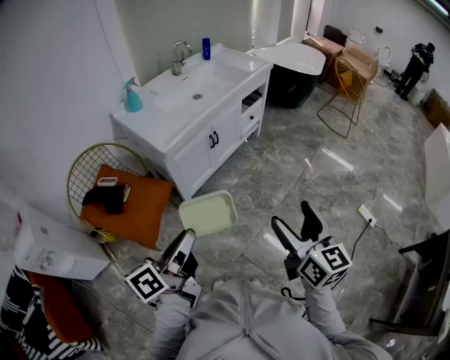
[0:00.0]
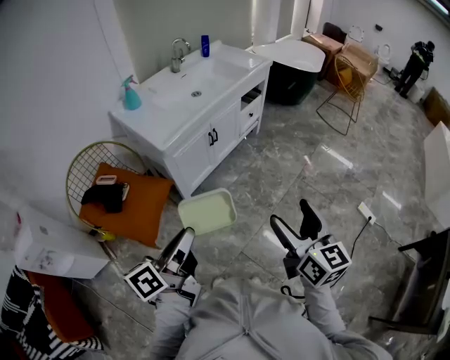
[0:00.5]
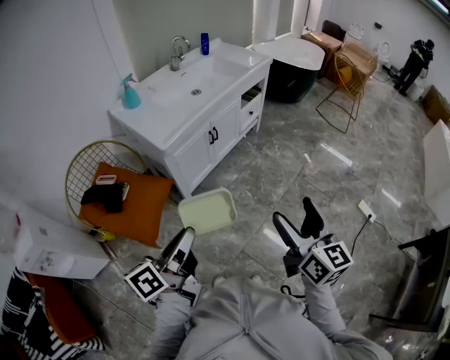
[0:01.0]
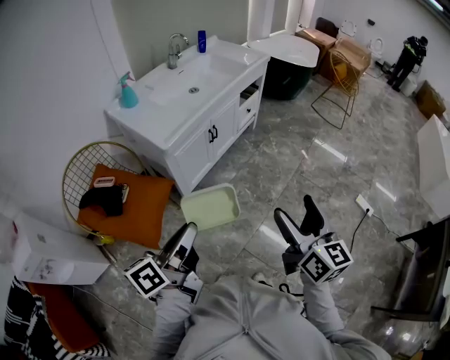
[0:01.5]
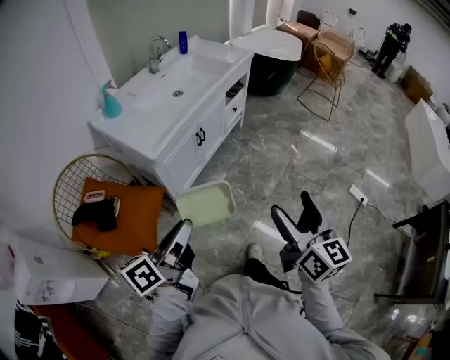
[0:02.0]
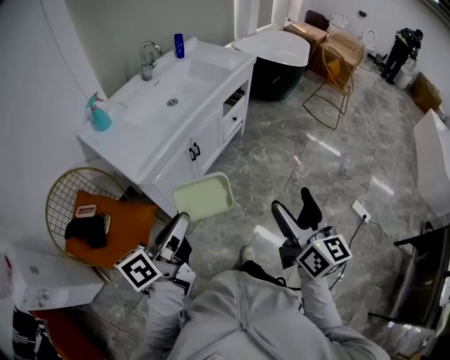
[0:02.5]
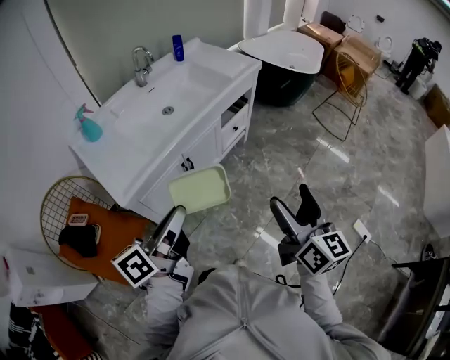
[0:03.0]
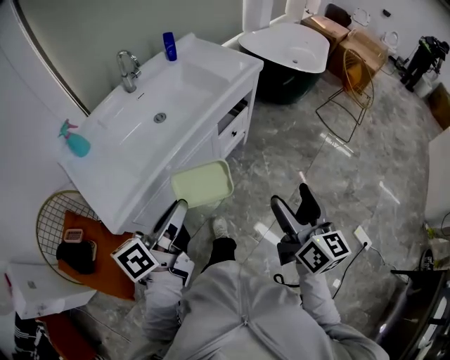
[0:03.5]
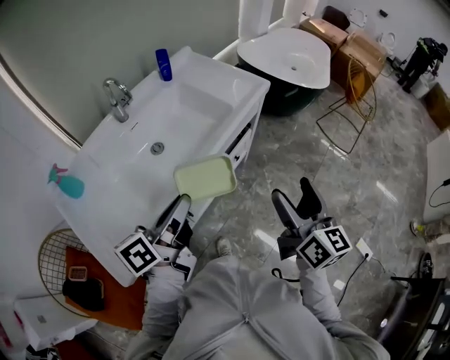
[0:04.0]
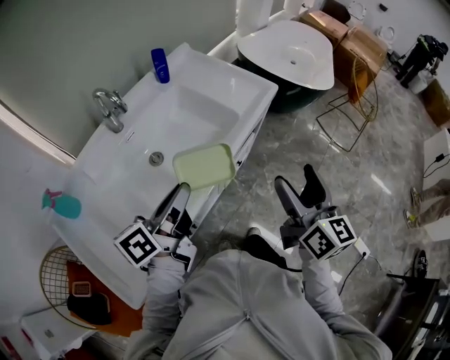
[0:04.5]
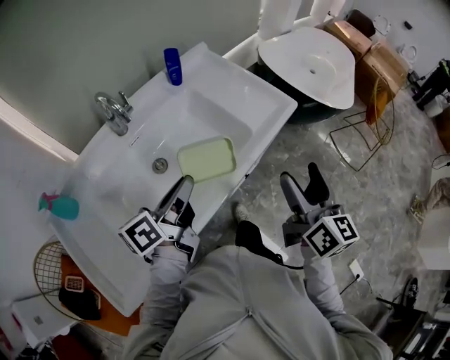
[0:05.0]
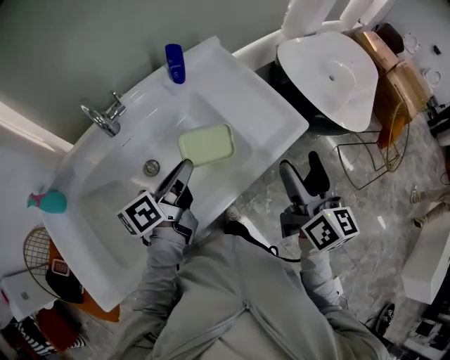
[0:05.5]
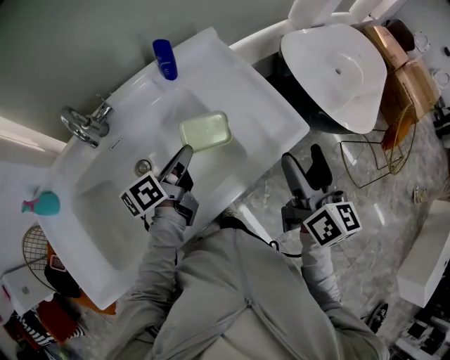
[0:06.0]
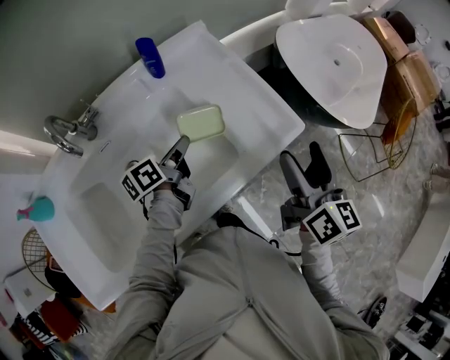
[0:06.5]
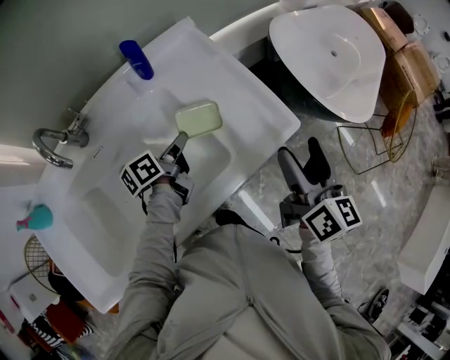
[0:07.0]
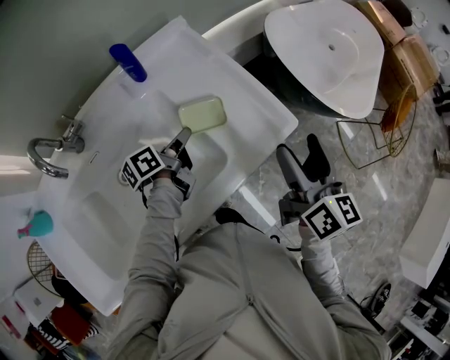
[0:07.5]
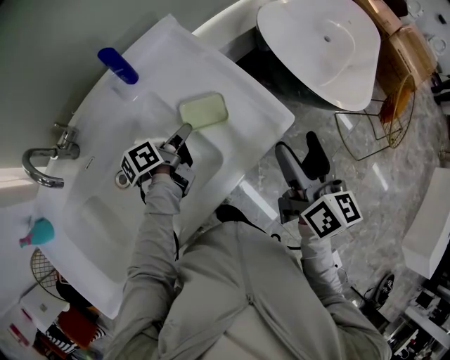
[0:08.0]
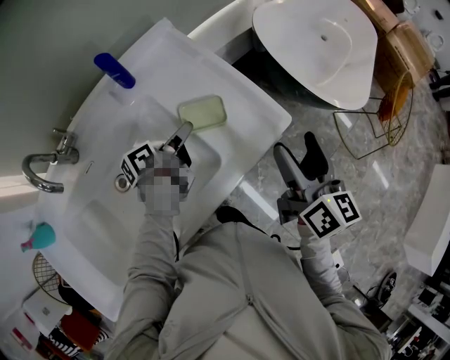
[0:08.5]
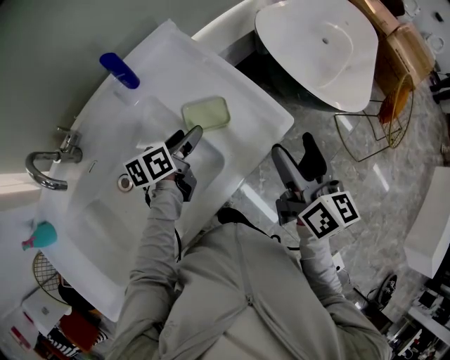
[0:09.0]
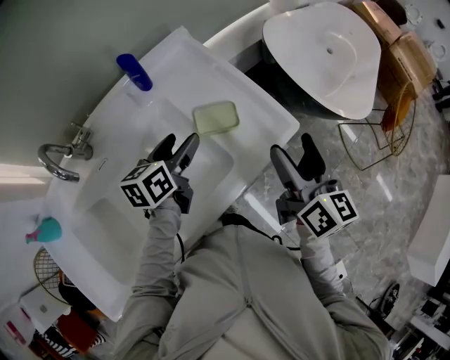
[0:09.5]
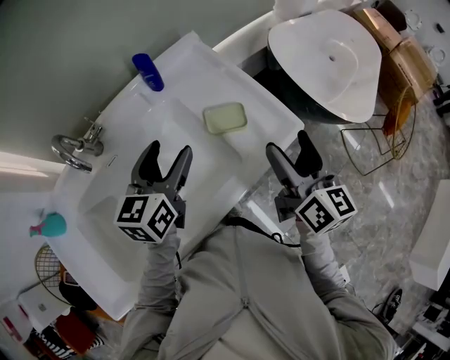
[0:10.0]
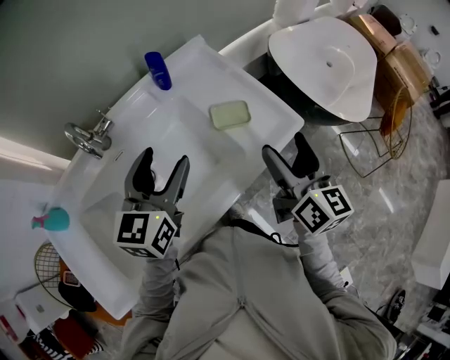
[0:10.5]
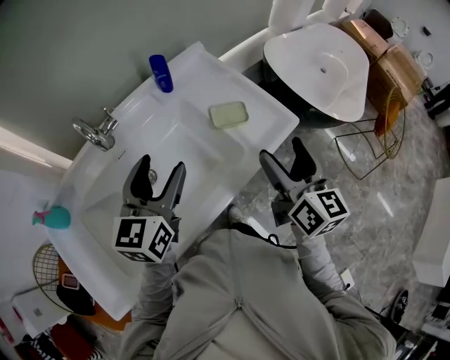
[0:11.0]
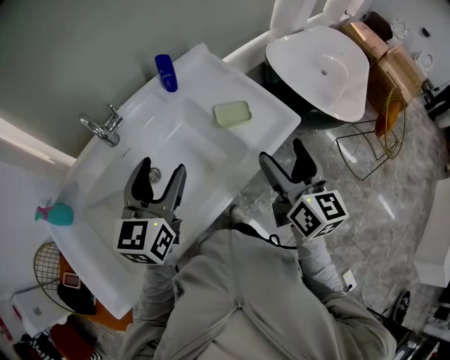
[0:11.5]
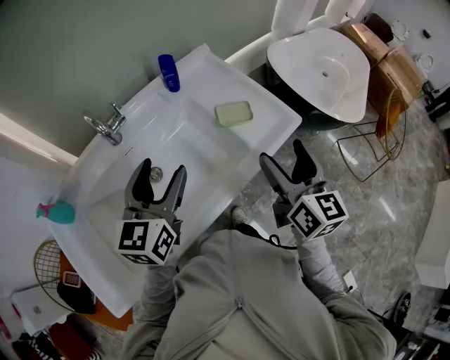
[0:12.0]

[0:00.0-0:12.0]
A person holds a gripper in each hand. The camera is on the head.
0:00.0 to 0:02.0: The left gripper heads forward and to the left, covering about 10 cm.
0:02.0 to 0:04.0: Both grippers are carried forward, some 60 cm.
0:04.0 to 0:06.0: Both grippers travel together forward, roughly 40 cm. The left gripper changes its angle by about 20 degrees.
0:06.0 to 0:08.0: The right gripper is displaced forward and to the right by roughly 5 cm, while the left gripper goes some 15 cm forward, downward and to the right.
0:08.0 to 0:10.0: The left gripper moves upward and backward, some 20 cm, rolls clockwise, seen from behind, by roughly 50 degrees, and opens its fingers; the right gripper travels to the left by some 5 cm.
0:10.0 to 0:12.0: The left gripper shifts about 15 cm backward, to the left and upward; the right gripper shifts approximately 10 cm backward and to the left.

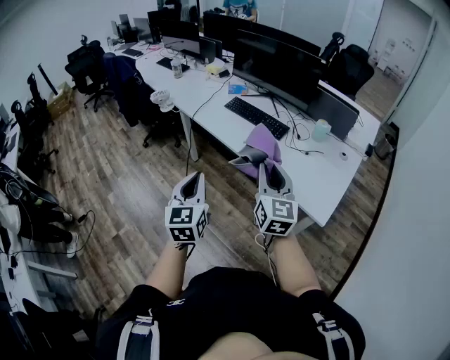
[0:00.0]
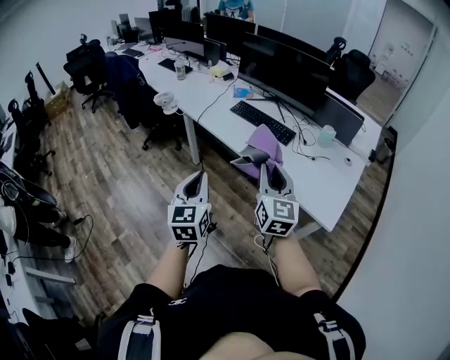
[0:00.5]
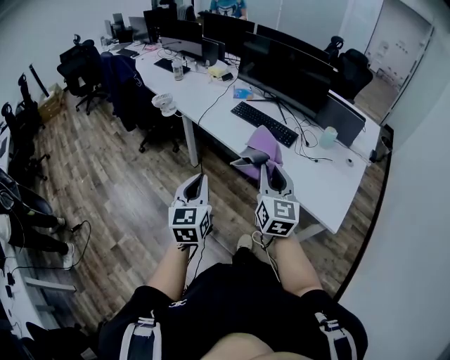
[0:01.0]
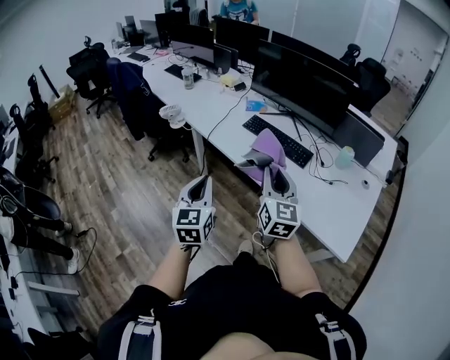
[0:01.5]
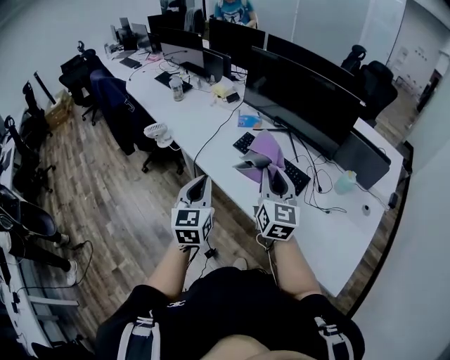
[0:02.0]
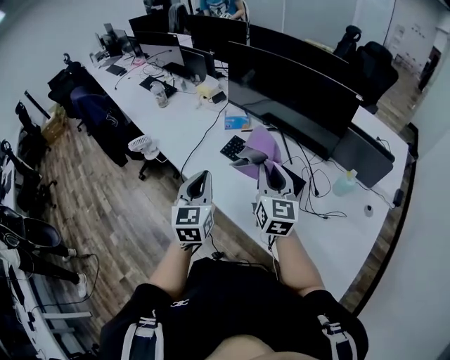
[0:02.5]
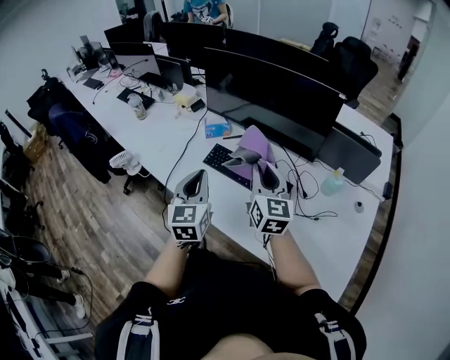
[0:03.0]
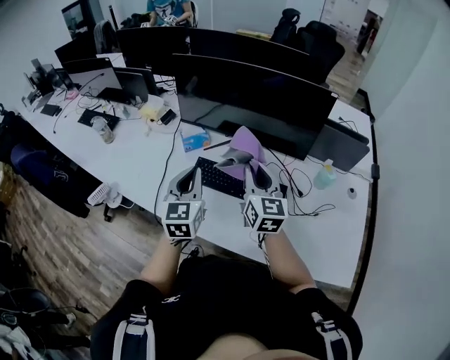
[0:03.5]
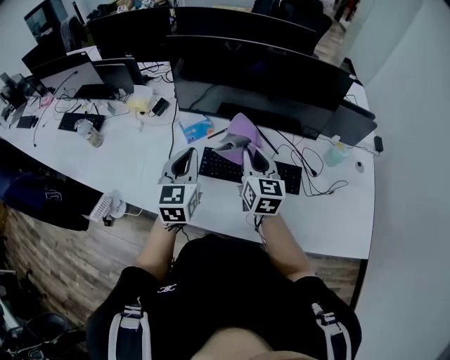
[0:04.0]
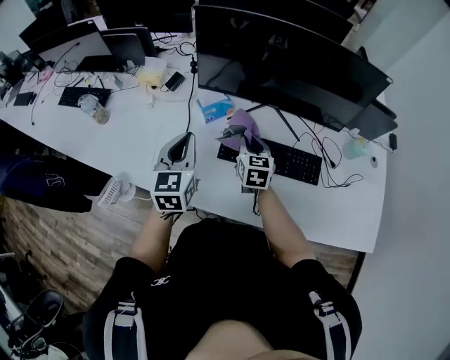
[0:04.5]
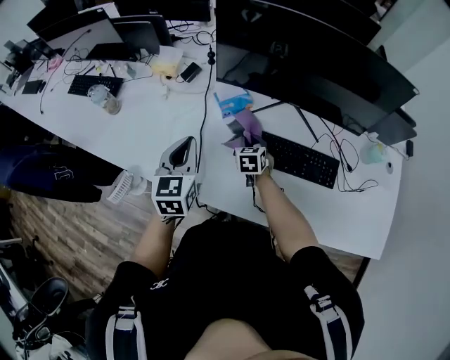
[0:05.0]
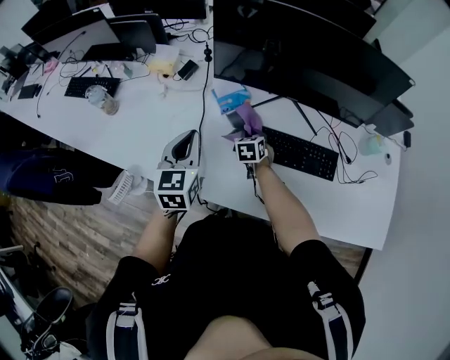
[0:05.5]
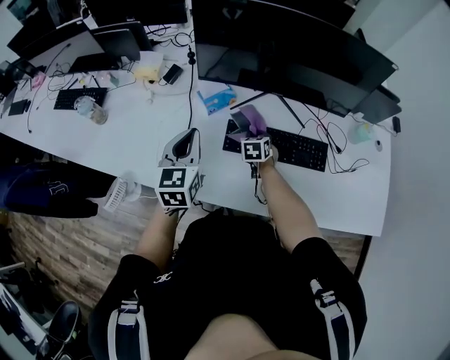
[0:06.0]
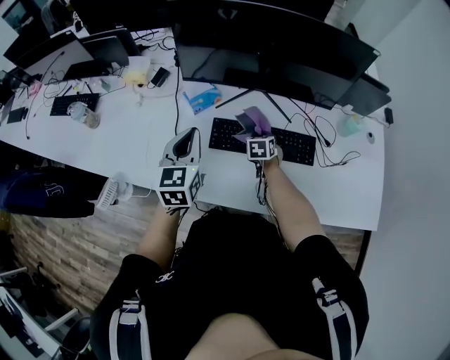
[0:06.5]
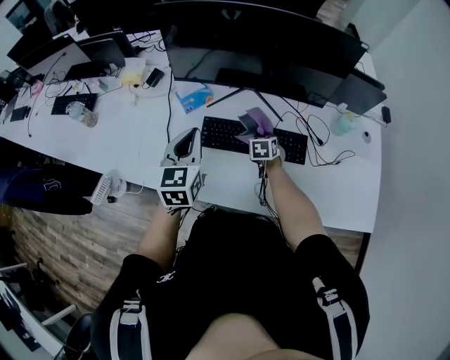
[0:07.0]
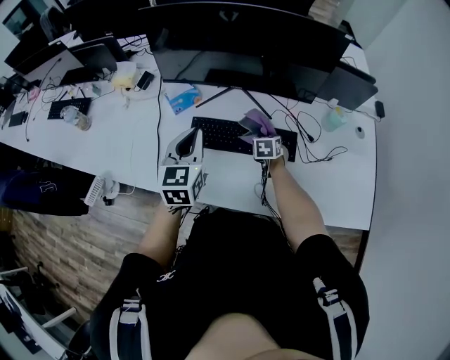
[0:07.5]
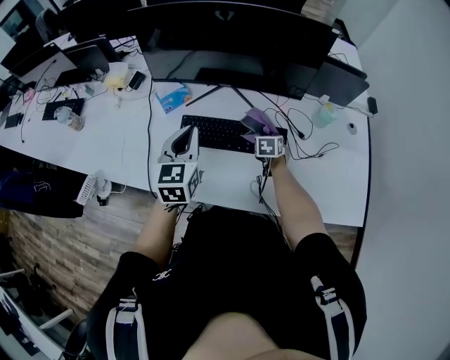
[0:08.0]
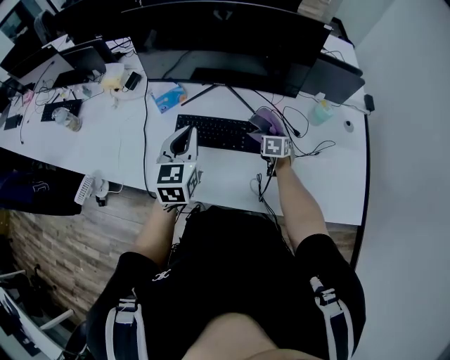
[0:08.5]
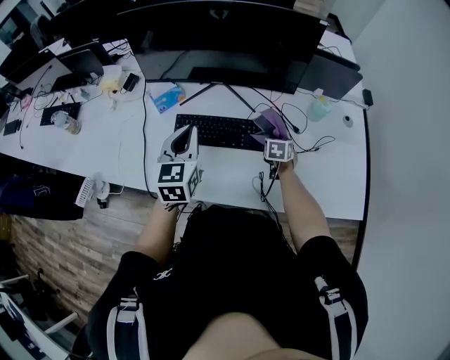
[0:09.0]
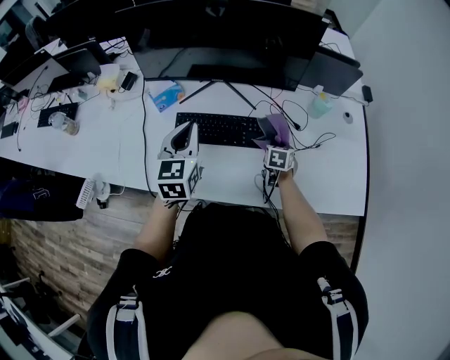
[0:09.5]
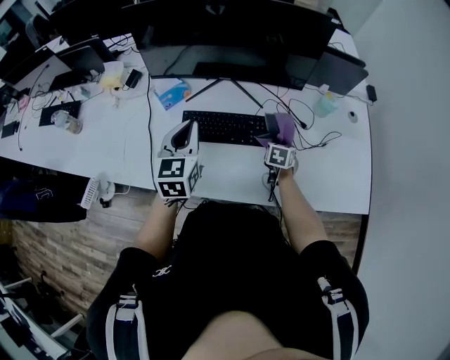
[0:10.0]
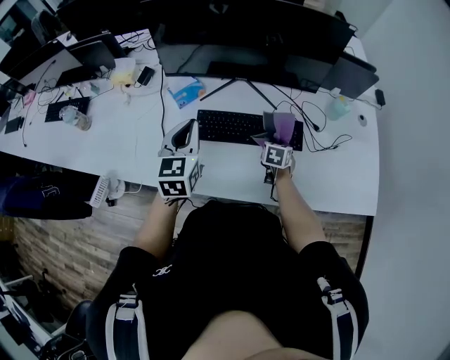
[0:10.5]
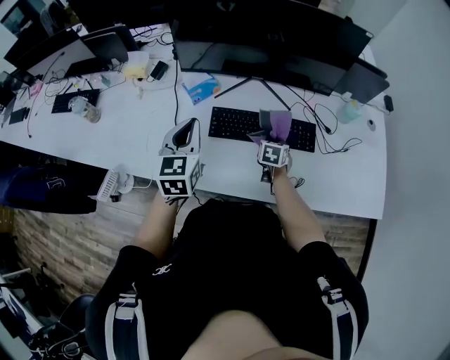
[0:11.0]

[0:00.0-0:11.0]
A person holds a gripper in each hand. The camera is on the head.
0:00.0 to 0:02.0: The grippers both shift forward by roughly 40 cm.
0:02.0 to 0:03.5: The two grippers go roughly 30 cm forward. The left gripper rotates roughly 20 degrees.
0:03.5 to 0:05.5: The right gripper moves downward, to the left and forward, roughly 40 cm, and points its fingers approximately 40 degrees further downward, while the left gripper shifts approximately 30 cm to the left and forward.
0:05.5 to 0:07.5: The grippers both shift to the right by roughly 25 cm.
0:07.5 to 0:09.0: The left gripper shifts roughly 5 cm to the right; the right gripper is displaced to the right by roughly 15 cm.
0:09.0 to 0:11.0: The two grippers go about 15 cm to the left.

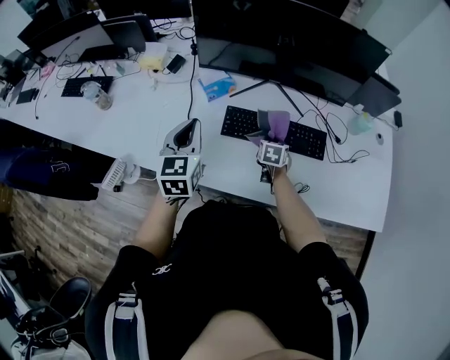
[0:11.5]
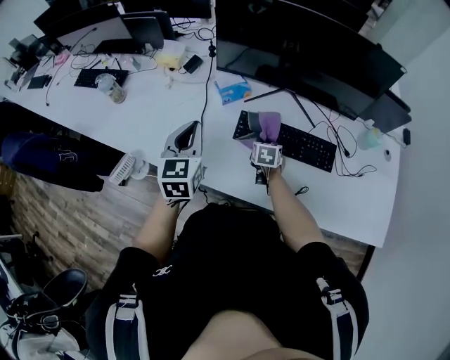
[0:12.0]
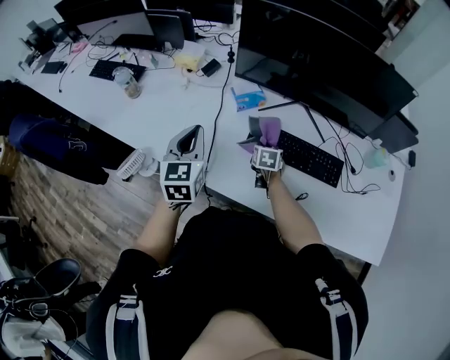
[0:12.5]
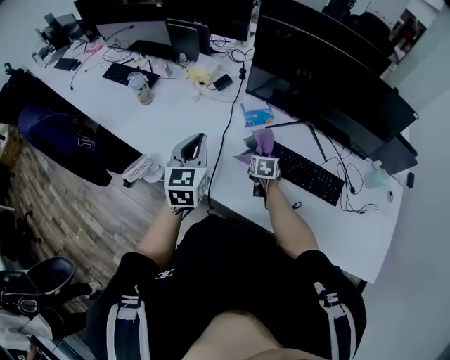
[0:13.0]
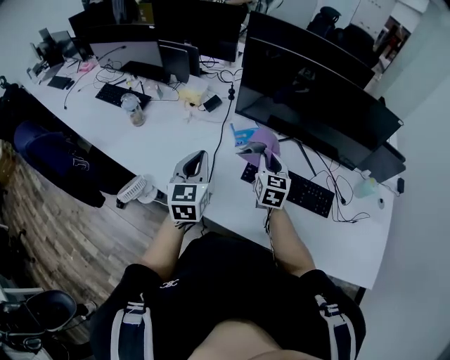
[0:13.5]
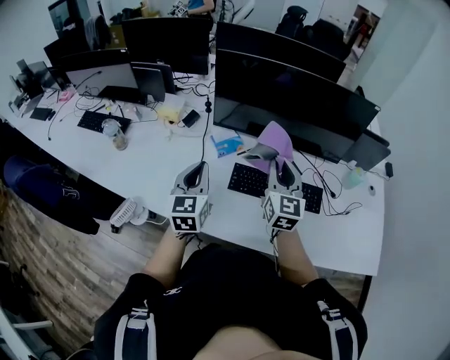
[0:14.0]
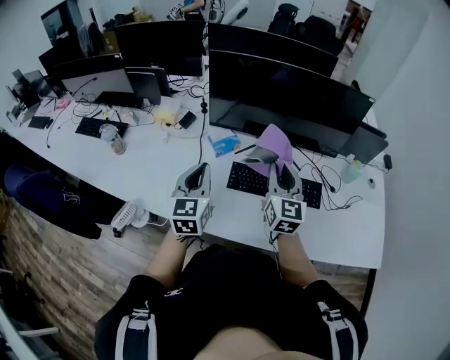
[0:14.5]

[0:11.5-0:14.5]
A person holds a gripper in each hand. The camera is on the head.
0:11.5 to 0:13.0: The left gripper shifts some 10 cm to the left, while the right gripper is displaced to the left by roughly 20 cm, and changes its angle by roughly 20 degrees.
0:13.0 to 0:14.5: The right gripper heads upward, covering about 30 cm, and points its fingers some 50 degrees further upward; the left gripper travels to the right by approximately 10 cm.
